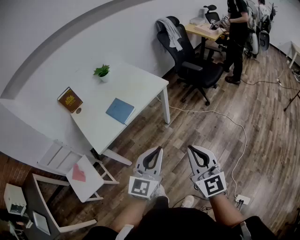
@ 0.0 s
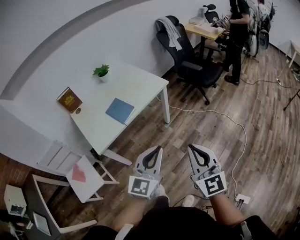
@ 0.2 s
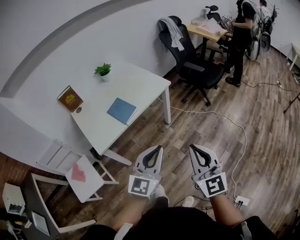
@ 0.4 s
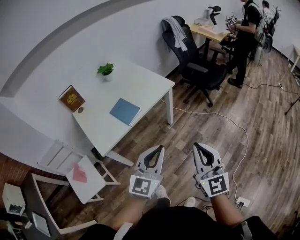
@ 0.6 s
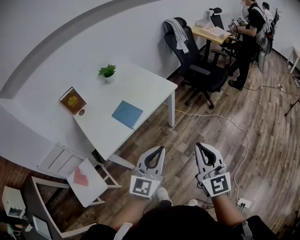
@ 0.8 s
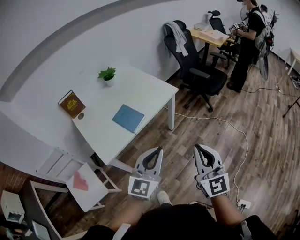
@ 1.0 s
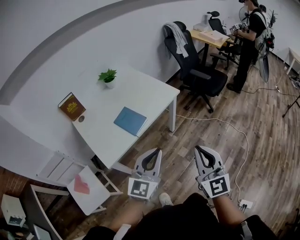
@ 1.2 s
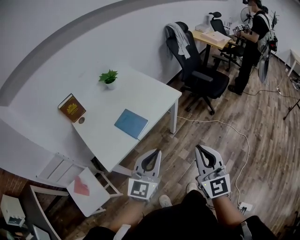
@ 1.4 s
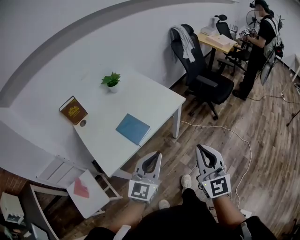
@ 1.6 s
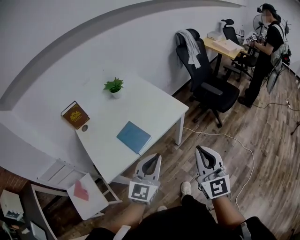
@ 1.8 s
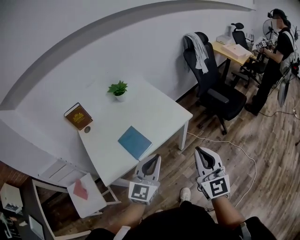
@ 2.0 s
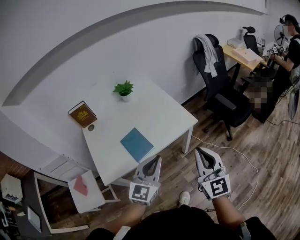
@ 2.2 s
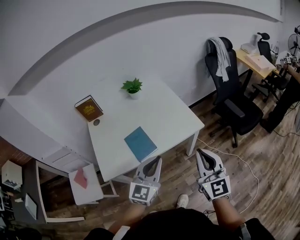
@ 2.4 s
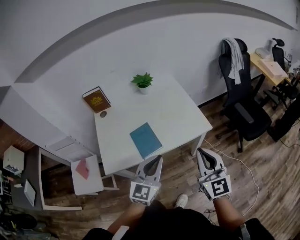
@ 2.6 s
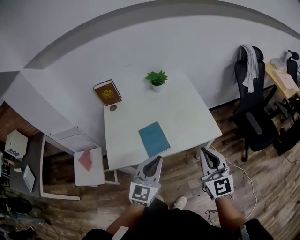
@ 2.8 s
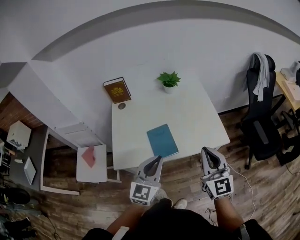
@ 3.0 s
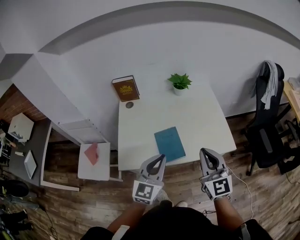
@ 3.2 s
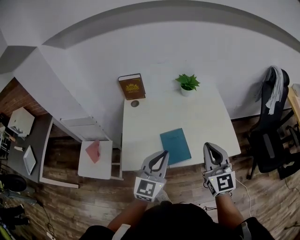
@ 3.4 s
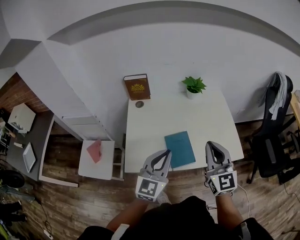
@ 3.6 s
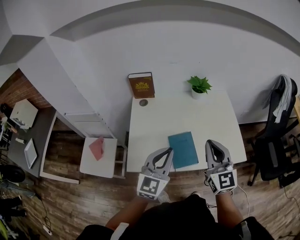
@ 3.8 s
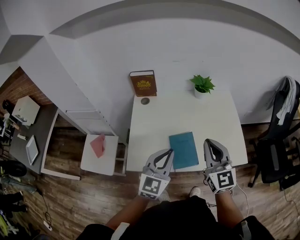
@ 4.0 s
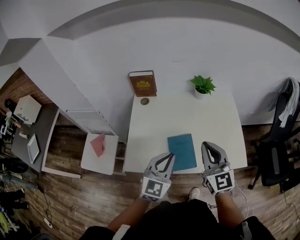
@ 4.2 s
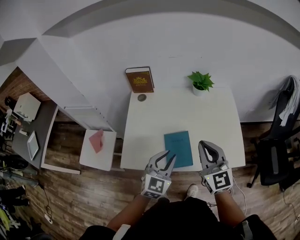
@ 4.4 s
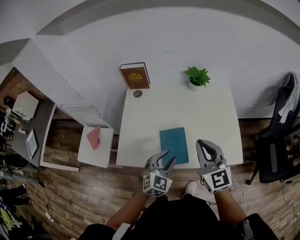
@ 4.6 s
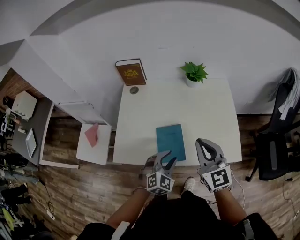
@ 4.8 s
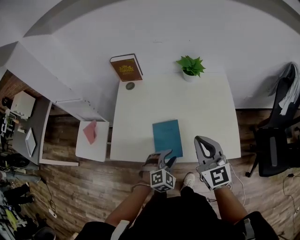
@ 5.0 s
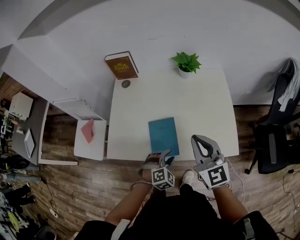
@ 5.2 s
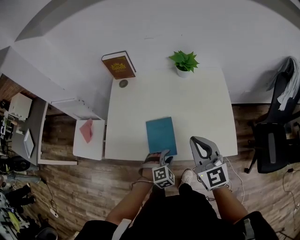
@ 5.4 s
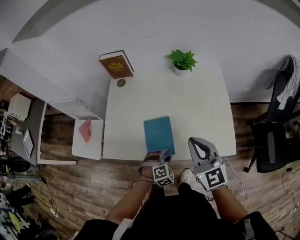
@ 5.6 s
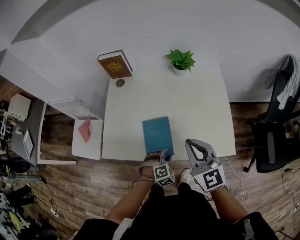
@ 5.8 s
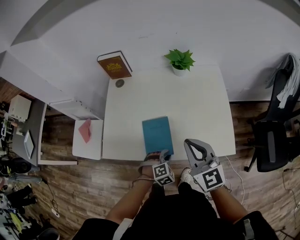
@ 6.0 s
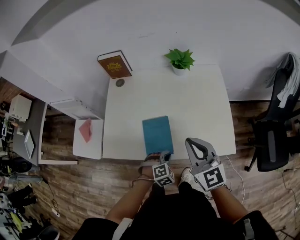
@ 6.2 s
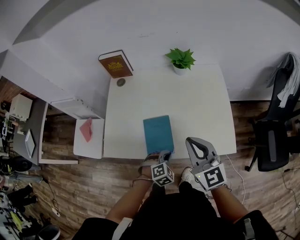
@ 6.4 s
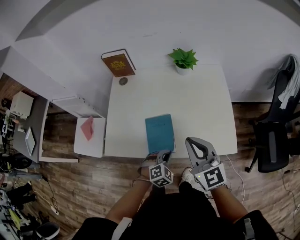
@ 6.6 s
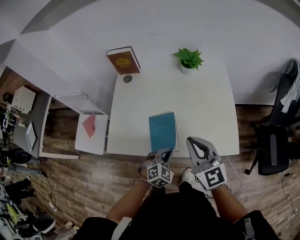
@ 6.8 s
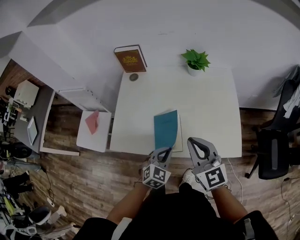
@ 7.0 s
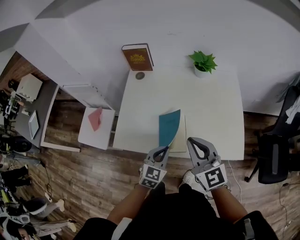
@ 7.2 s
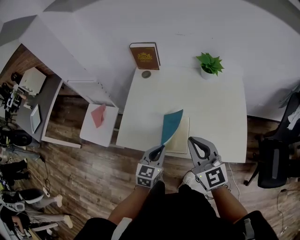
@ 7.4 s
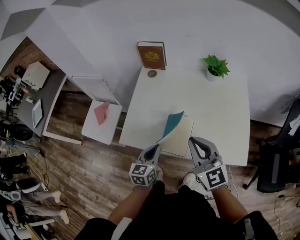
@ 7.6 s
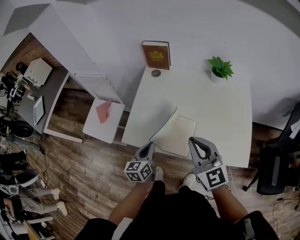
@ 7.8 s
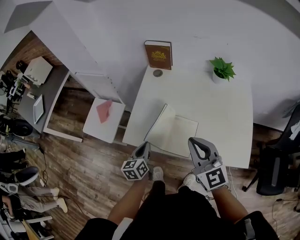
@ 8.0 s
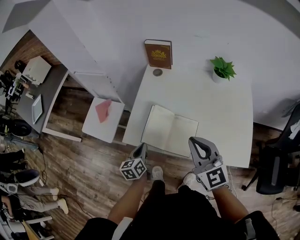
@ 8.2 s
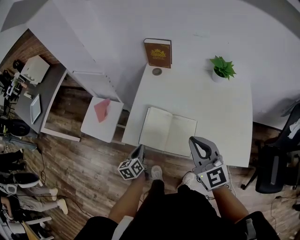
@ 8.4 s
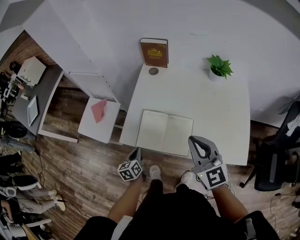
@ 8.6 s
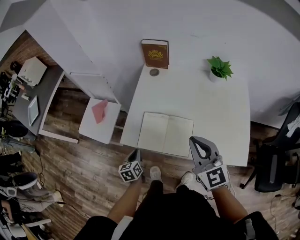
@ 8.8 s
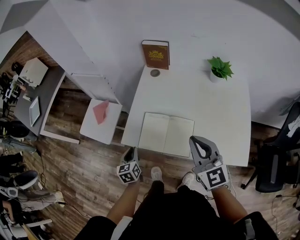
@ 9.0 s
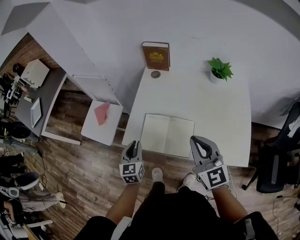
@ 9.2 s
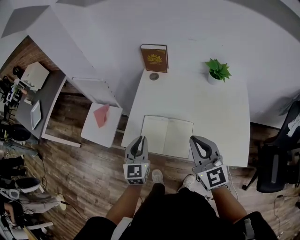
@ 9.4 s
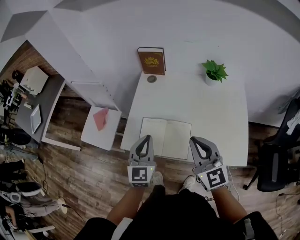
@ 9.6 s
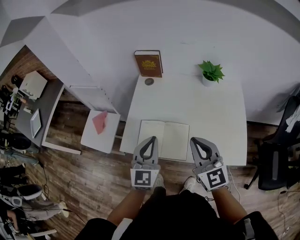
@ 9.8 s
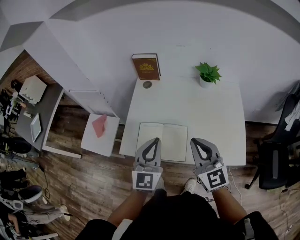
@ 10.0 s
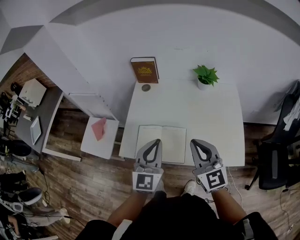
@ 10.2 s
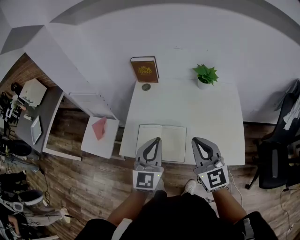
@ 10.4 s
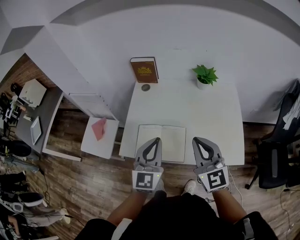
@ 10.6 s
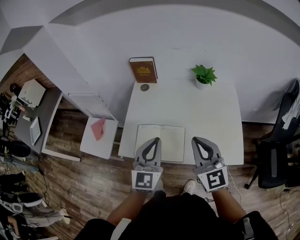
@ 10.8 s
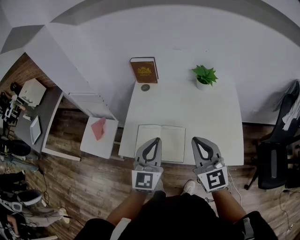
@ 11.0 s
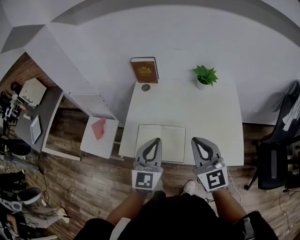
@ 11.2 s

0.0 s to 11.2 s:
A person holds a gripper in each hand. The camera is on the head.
0.0 to 1.6 s: The grippers both shift forward and to the left by some 20 cm.
1.6 to 3.2 s: The left gripper ends up roughly 20 cm from where it was, and changes its angle by some 40 degrees, while the right gripper changes place by approximately 30 cm, and swivels approximately 40 degrees.
3.2 to 4.8 s: The right gripper moves forward, approximately 10 cm. The left gripper moves downward and forward, some 20 cm, swivels roughly 40 degrees, and opens up.
4.8 to 6.4 s: The left gripper is displaced downward and to the right by roughly 15 cm, changes its angle by about 20 degrees, and closes.
6.4 to 8.0 s: The right gripper is displaced to the left by about 15 cm; the left gripper heads to the left, covering about 25 cm, and rotates around the line of its fingers by roughly 80 degrees, counterclockwise from behind.
8.0 to 9.6 s: The left gripper goes approximately 15 cm upward, and turns by roughly 40 degrees.
9.6 to 11.2 s: The left gripper travels to the right and upward by roughly 10 cm.

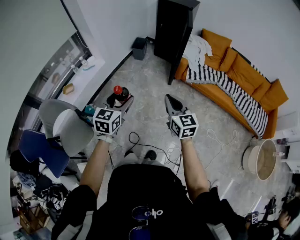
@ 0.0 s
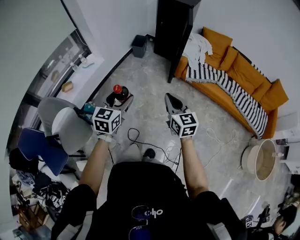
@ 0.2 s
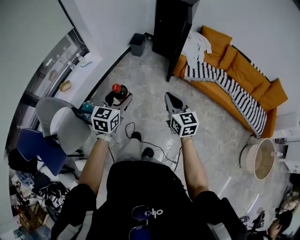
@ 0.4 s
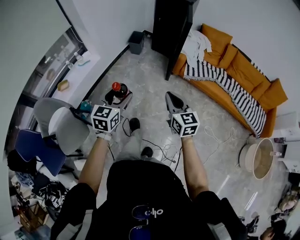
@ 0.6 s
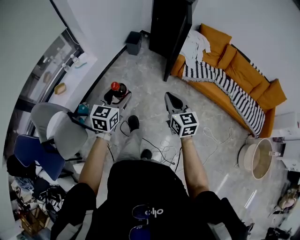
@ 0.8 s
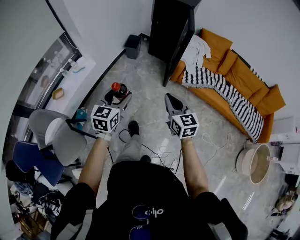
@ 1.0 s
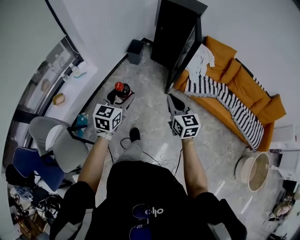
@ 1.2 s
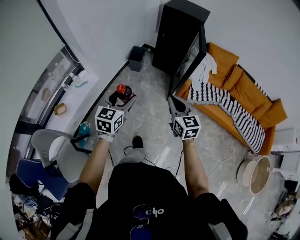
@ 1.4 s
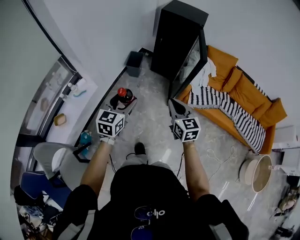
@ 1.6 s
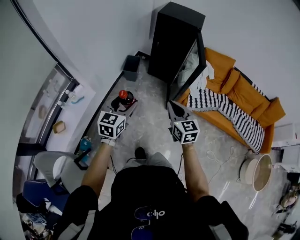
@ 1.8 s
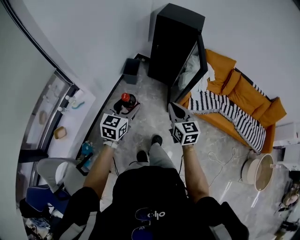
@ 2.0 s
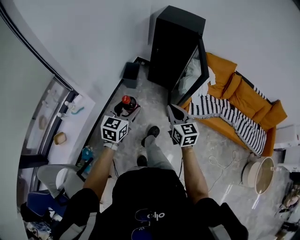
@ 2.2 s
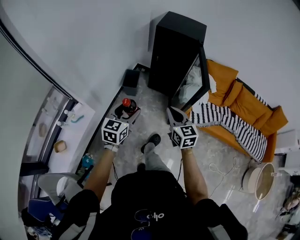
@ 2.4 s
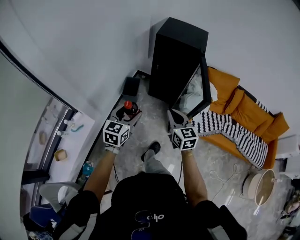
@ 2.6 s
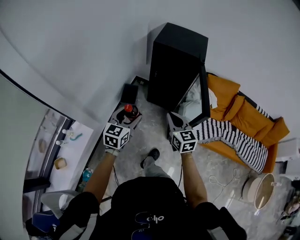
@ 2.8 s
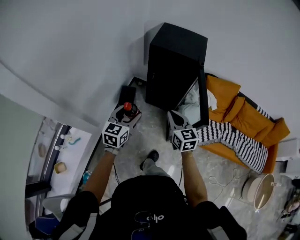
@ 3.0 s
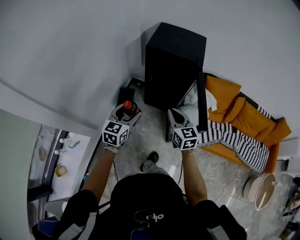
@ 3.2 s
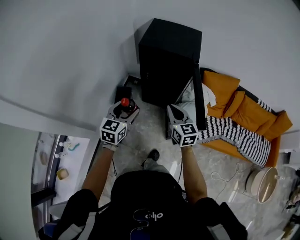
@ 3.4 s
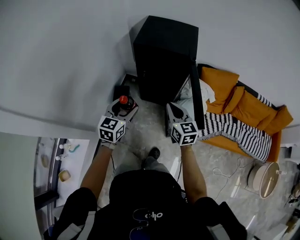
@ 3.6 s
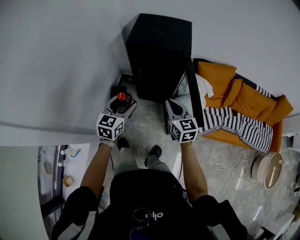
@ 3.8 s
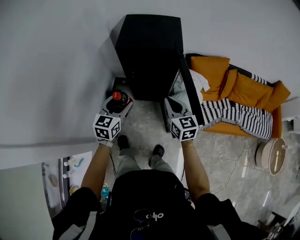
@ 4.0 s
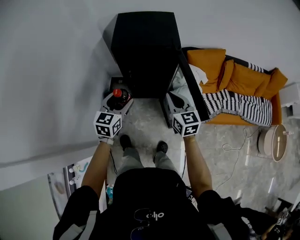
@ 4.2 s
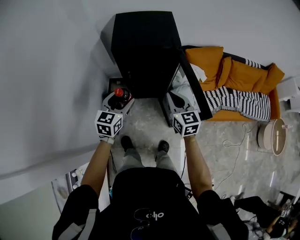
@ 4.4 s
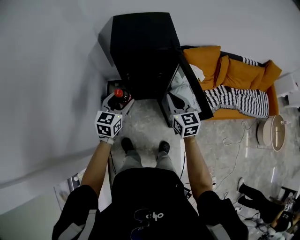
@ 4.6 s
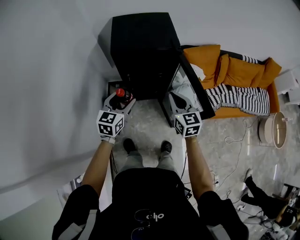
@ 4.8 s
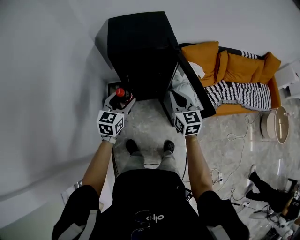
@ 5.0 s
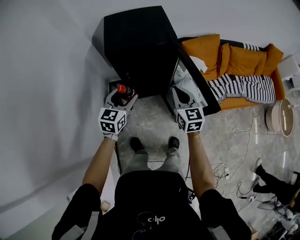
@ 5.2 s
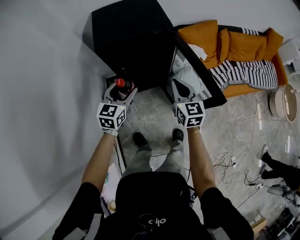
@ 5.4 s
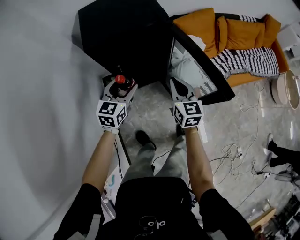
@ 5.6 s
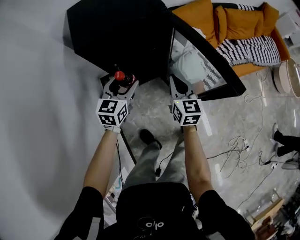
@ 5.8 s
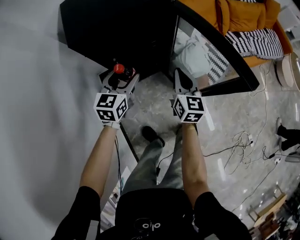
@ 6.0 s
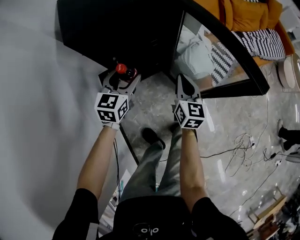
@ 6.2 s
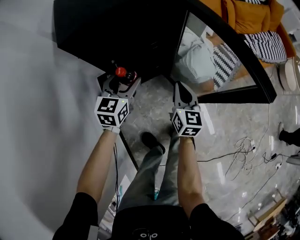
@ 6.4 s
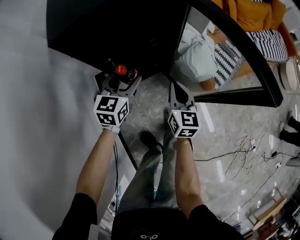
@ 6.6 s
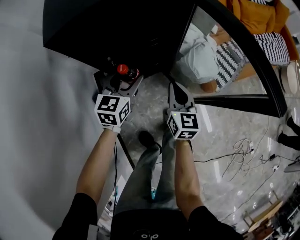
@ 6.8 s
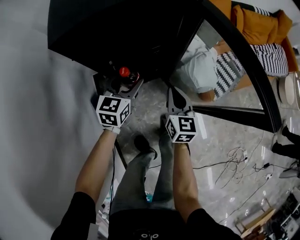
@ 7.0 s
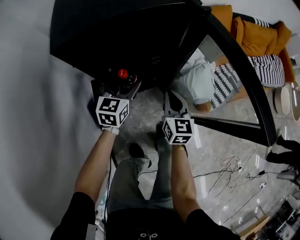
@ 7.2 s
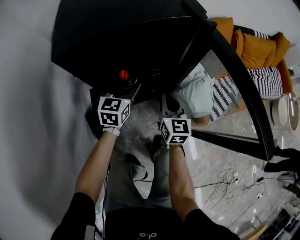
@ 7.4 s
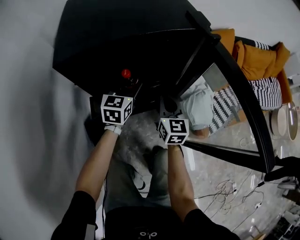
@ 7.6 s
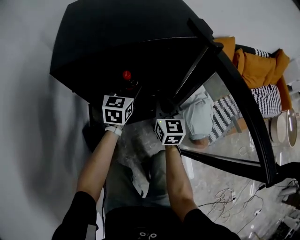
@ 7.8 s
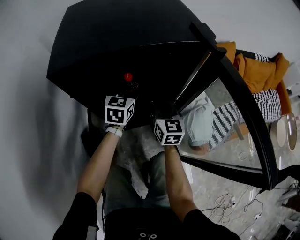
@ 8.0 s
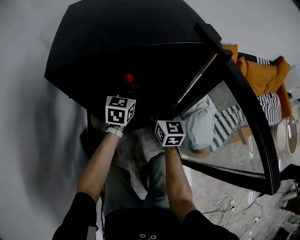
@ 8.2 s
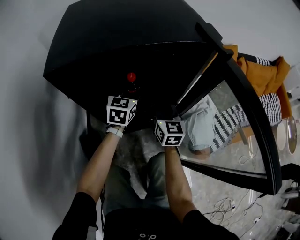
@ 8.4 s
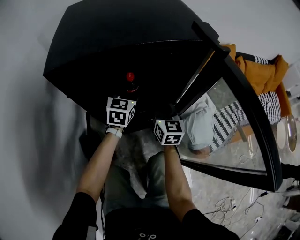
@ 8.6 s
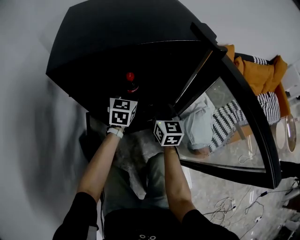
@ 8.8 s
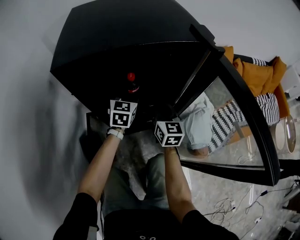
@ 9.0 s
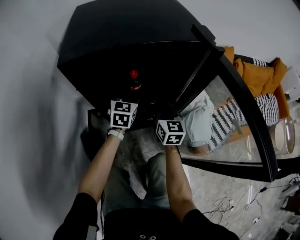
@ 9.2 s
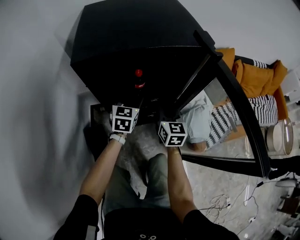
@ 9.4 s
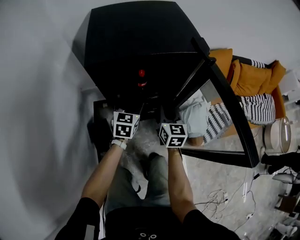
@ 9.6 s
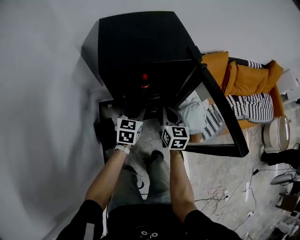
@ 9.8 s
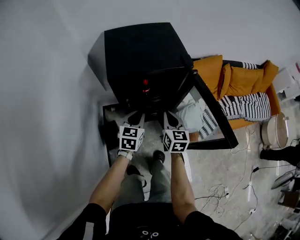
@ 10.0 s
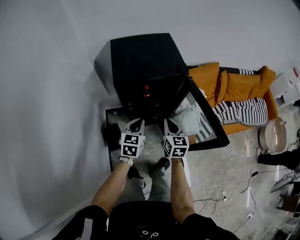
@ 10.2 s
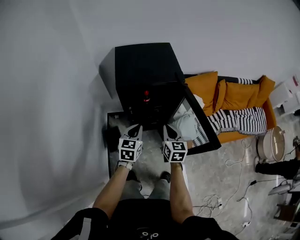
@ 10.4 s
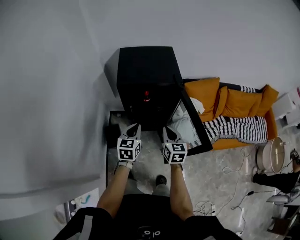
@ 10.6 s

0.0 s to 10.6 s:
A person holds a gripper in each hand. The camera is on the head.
0.0 to 1.6 s: Both grippers travel together forward, some 35 cm.
1.6 to 3.0 s: Both grippers move forward, roughly 40 cm.
3.0 to 4.6 s: Both grippers travel together forward, about 20 cm. The right gripper swivels about 20 degrees. The left gripper changes its angle by approximately 20 degrees.
4.6 to 6.0 s: The left gripper shifts roughly 20 cm downward and forward; the right gripper is displaced downward by approximately 20 cm, and turns by approximately 40 degrees.
6.0 to 7.6 s: The right gripper moves forward, downward and to the left, roughly 20 cm. Meanwhile the left gripper travels forward and downward by about 20 cm.
7.6 to 9.0 s: The grippers both shift forward by about 5 cm.
9.0 to 10.6 s: The left gripper goes some 40 cm backward and upward, and closes; the right gripper goes about 35 cm upward and backward.

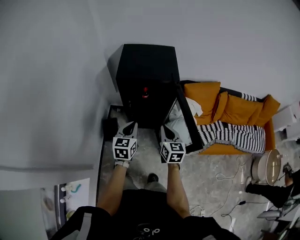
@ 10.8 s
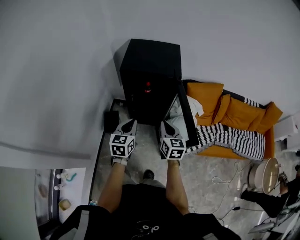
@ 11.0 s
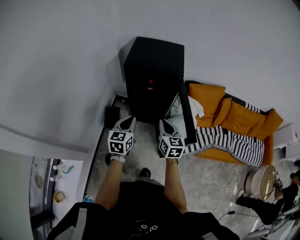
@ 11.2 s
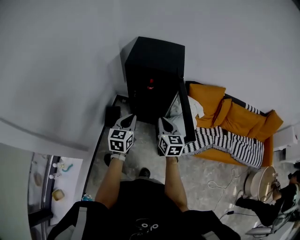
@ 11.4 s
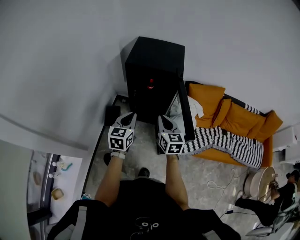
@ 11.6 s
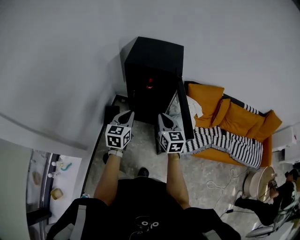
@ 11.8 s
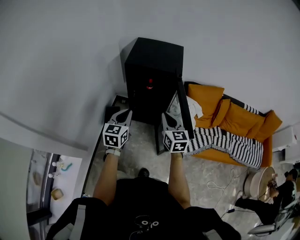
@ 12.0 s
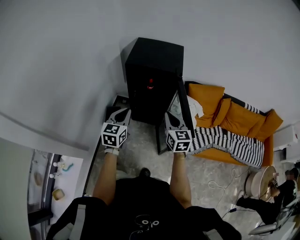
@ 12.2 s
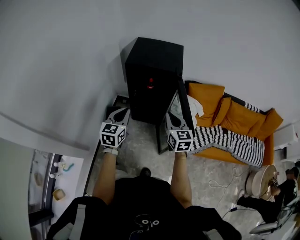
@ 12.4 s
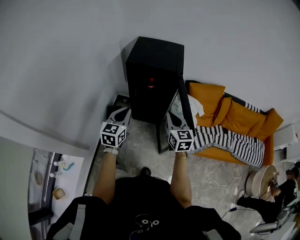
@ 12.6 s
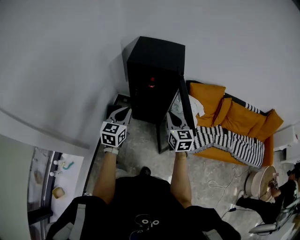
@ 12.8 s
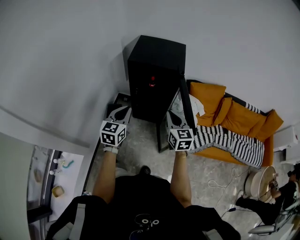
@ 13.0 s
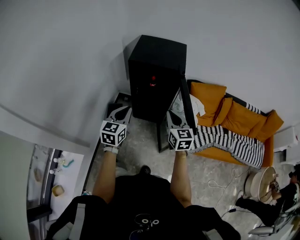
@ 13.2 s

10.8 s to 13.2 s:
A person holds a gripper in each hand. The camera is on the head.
10.8 to 12.0 s: The left gripper heads backward, covering some 10 cm. The right gripper travels upward and backward by about 10 cm.
12.0 to 13.2 s: The grippers move only a little.
